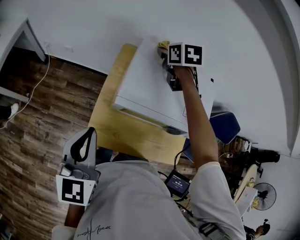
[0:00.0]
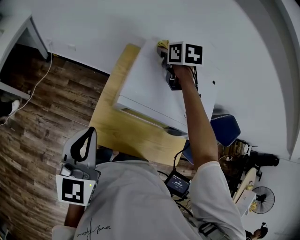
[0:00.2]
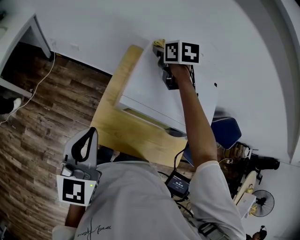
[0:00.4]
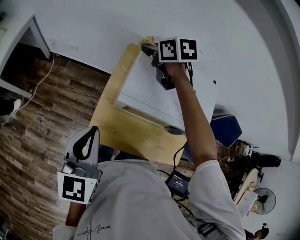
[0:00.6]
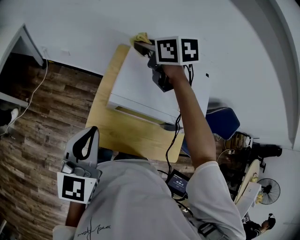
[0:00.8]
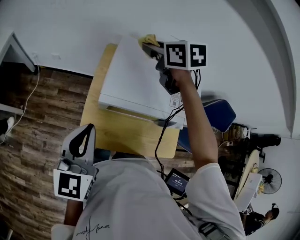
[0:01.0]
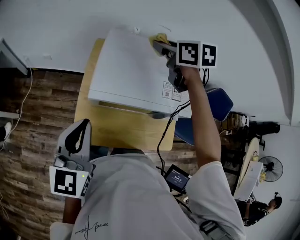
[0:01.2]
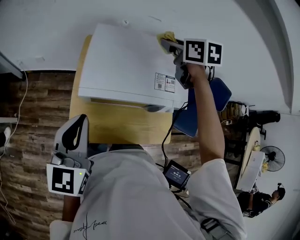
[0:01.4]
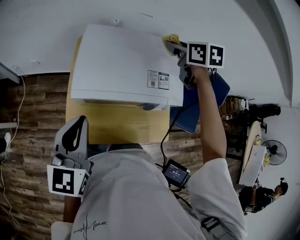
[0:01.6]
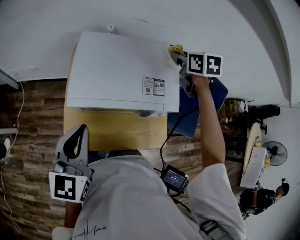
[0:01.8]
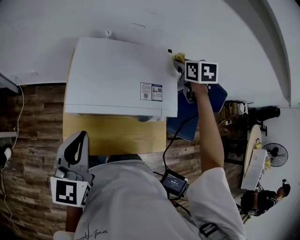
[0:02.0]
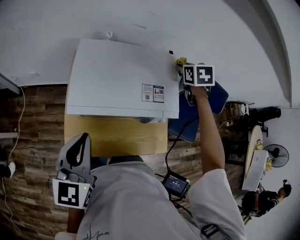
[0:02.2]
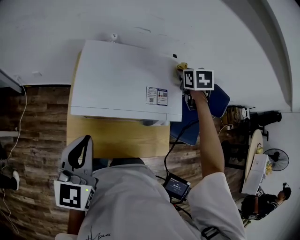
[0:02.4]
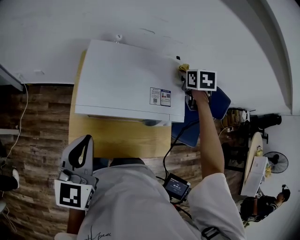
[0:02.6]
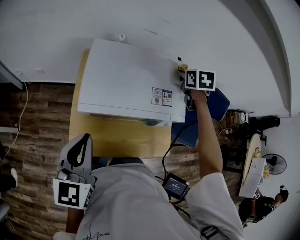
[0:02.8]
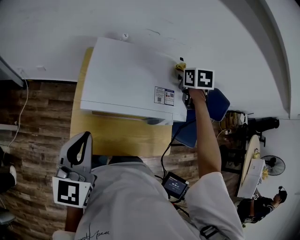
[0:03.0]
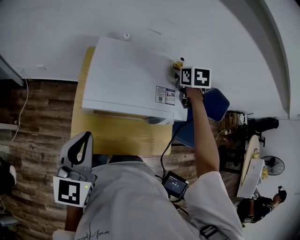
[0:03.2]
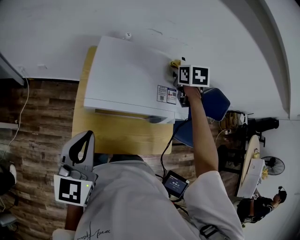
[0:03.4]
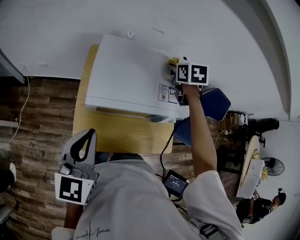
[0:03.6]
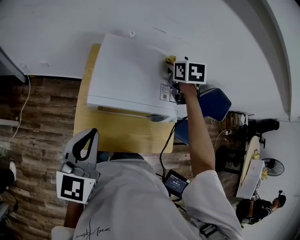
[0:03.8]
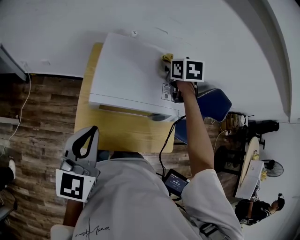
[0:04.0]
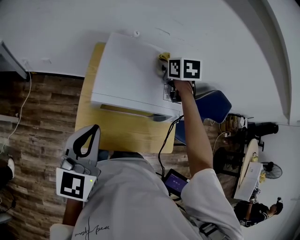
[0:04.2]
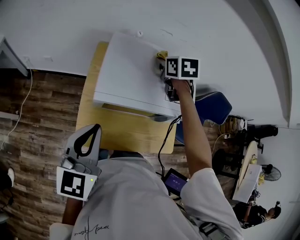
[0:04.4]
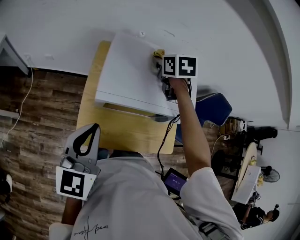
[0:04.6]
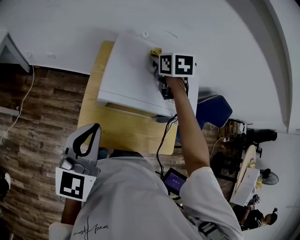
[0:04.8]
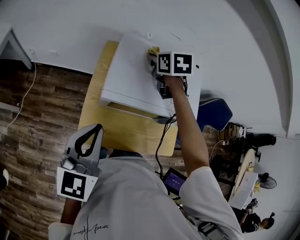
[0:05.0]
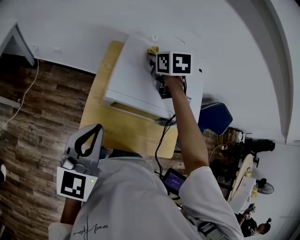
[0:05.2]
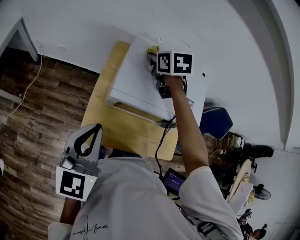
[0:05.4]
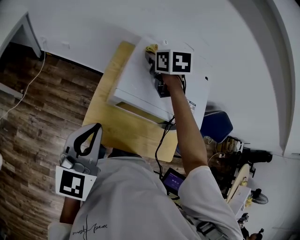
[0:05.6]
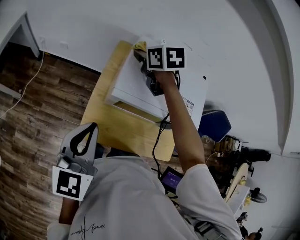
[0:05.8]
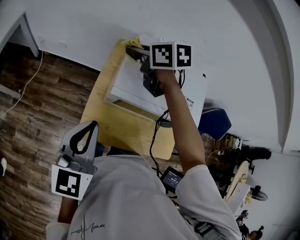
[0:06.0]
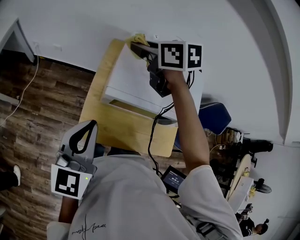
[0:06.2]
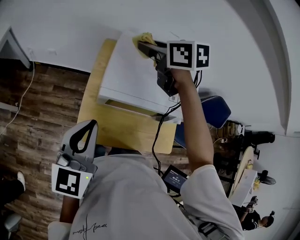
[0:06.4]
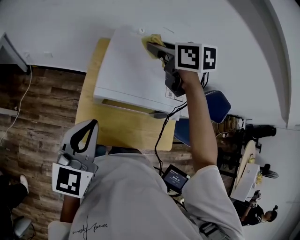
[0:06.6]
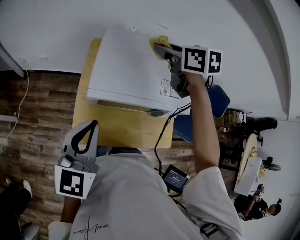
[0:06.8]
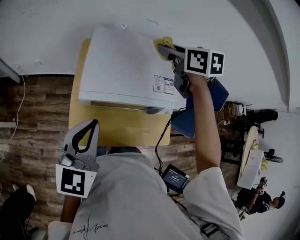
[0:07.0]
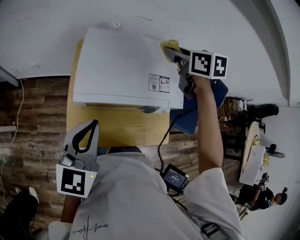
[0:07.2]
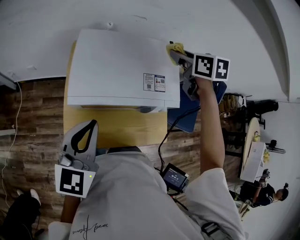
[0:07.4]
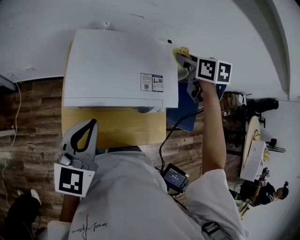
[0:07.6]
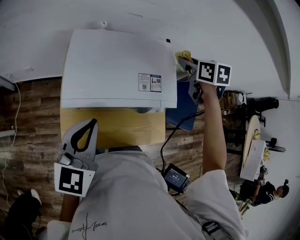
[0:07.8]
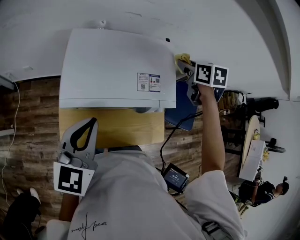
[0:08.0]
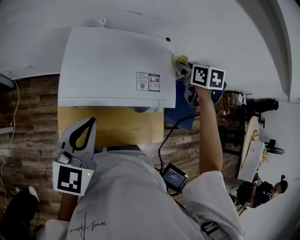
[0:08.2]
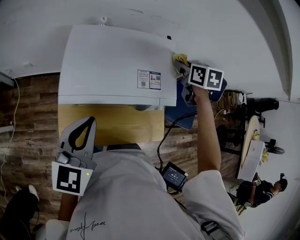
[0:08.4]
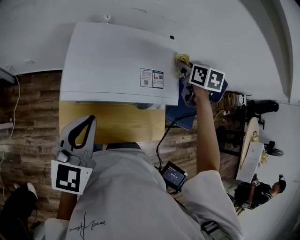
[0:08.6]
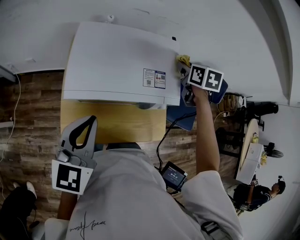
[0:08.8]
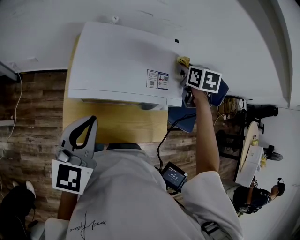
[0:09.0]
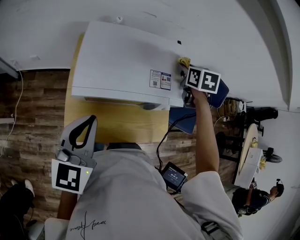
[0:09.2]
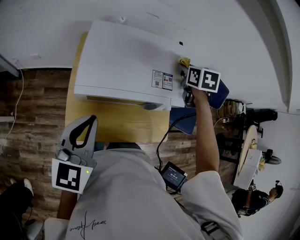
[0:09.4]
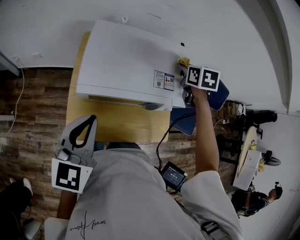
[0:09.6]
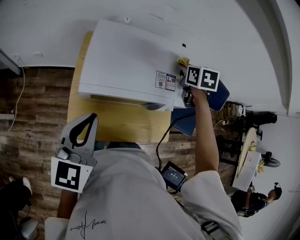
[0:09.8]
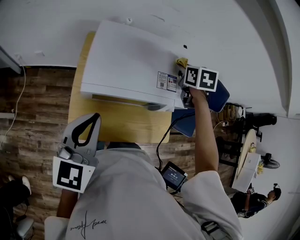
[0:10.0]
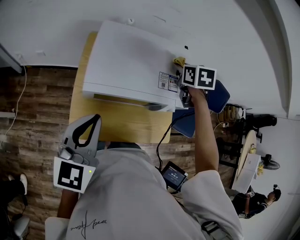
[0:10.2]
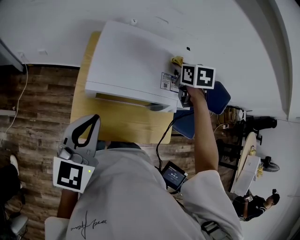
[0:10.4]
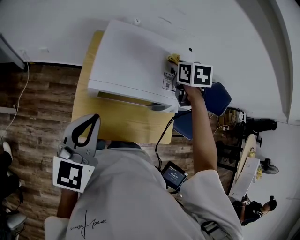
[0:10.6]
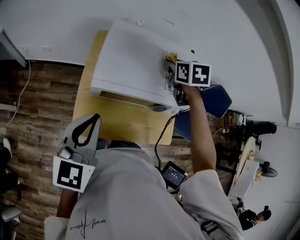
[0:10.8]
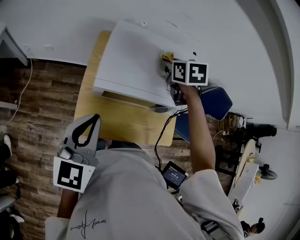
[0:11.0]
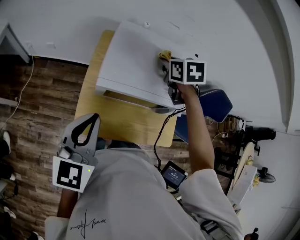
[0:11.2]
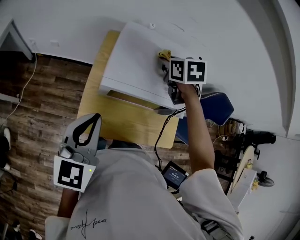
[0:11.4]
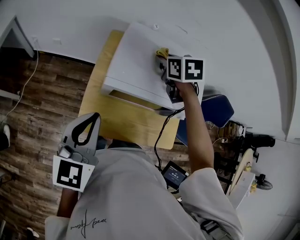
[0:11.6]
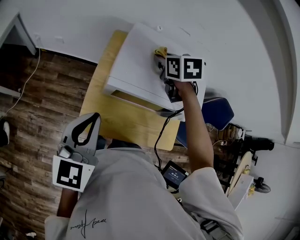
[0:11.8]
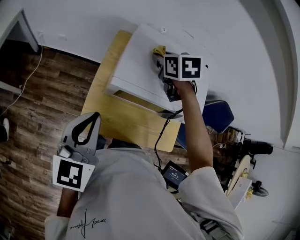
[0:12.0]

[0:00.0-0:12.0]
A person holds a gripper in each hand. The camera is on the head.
0:00.0 to 0:01.6: The left gripper travels to the right by some 10 cm, while the right gripper moves to the right and backward, some 25 cm.
0:01.6 to 0:03.0: The right gripper is displaced to the right and downward by roughly 10 cm.
0:03.0 to 0:04.4: The right gripper travels to the left by roughly 15 cm.
0:04.4 to 0:06.0: The right gripper moves approximately 25 cm, and changes its angle by roughly 30 degrees, while the left gripper ends up roughly 5 cm from where it was.
0:06.0 to 0:07.6: The right gripper ends up about 40 cm from where it was, and changes its angle by some 30 degrees; the left gripper moves some 15 cm.
0:07.6 to 0:09.0: The right gripper moves downward, about 5 cm.
0:09.0 to 0:10.4: The right gripper heads to the left, covering about 10 cm.
0:10.4 to 0:12.0: The left gripper is displaced to the left by about 5 cm, while the right gripper moves to the left, about 20 cm.

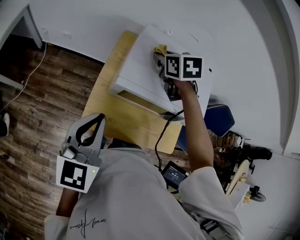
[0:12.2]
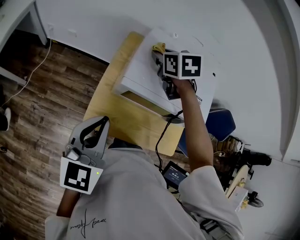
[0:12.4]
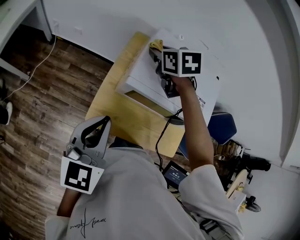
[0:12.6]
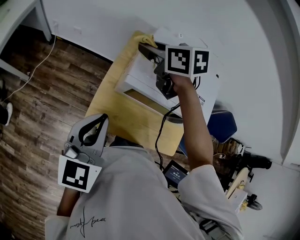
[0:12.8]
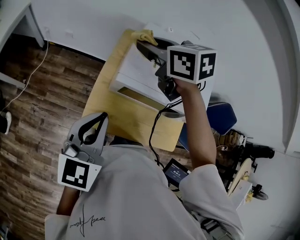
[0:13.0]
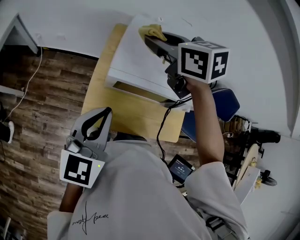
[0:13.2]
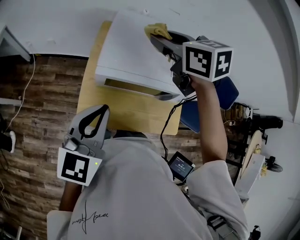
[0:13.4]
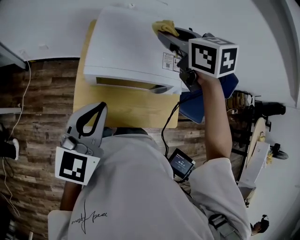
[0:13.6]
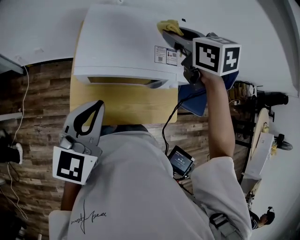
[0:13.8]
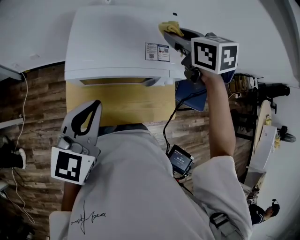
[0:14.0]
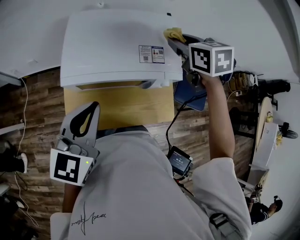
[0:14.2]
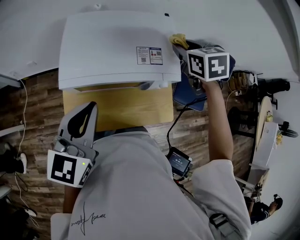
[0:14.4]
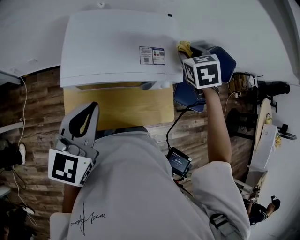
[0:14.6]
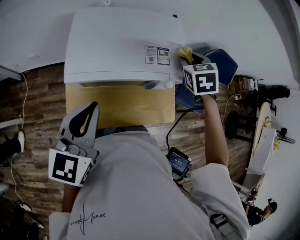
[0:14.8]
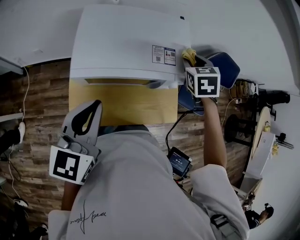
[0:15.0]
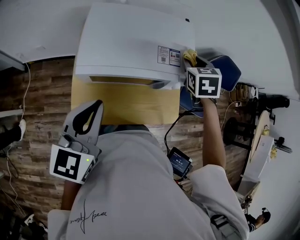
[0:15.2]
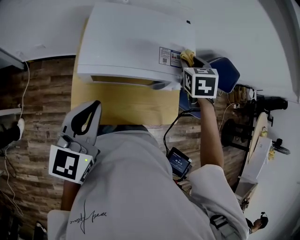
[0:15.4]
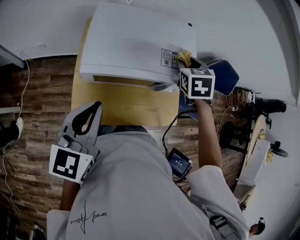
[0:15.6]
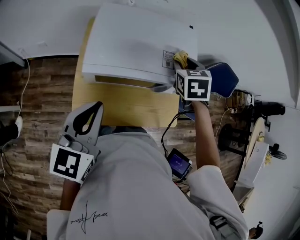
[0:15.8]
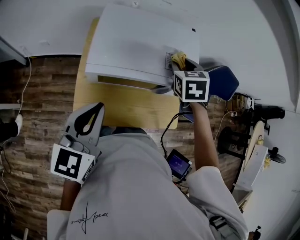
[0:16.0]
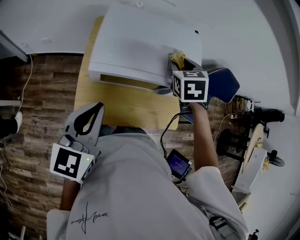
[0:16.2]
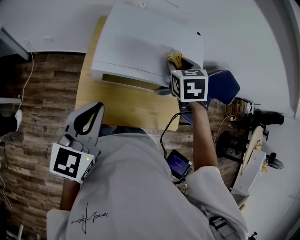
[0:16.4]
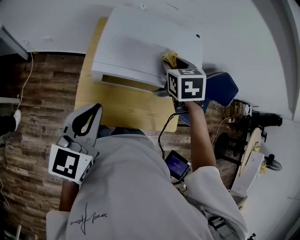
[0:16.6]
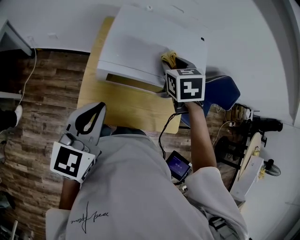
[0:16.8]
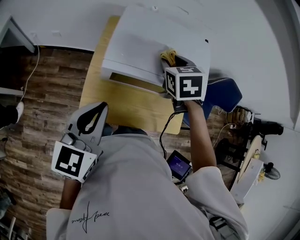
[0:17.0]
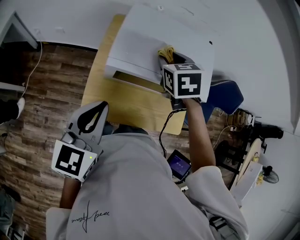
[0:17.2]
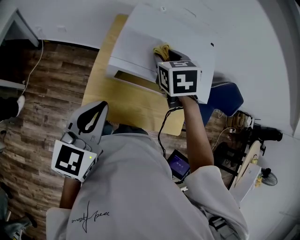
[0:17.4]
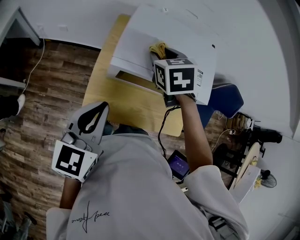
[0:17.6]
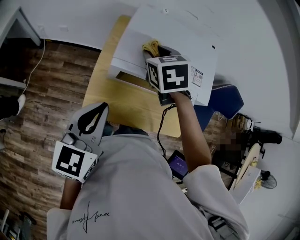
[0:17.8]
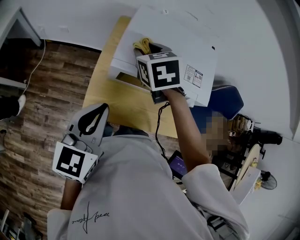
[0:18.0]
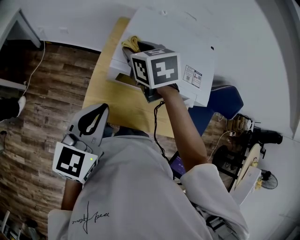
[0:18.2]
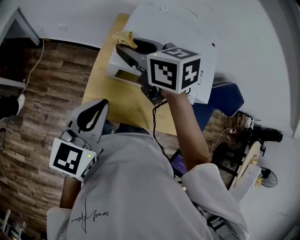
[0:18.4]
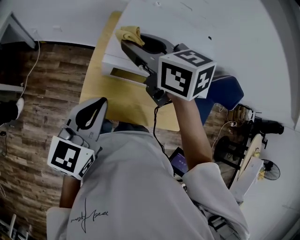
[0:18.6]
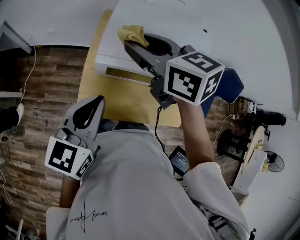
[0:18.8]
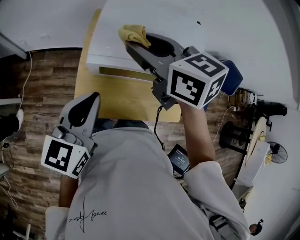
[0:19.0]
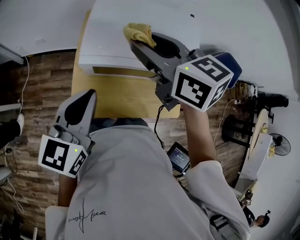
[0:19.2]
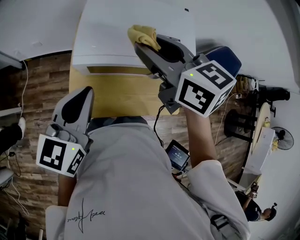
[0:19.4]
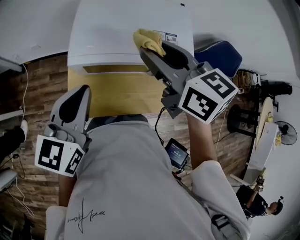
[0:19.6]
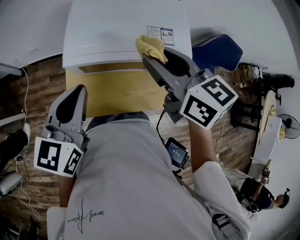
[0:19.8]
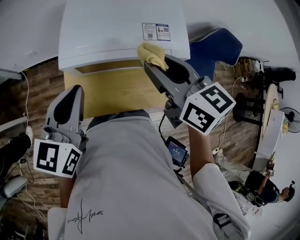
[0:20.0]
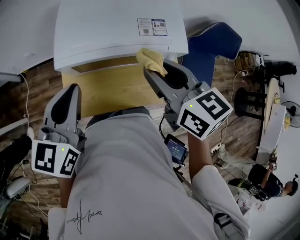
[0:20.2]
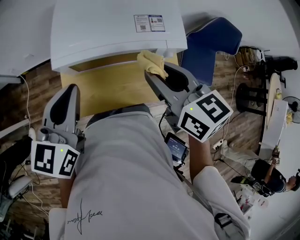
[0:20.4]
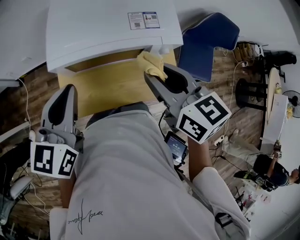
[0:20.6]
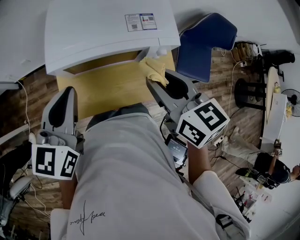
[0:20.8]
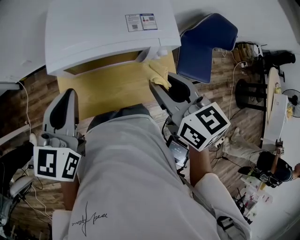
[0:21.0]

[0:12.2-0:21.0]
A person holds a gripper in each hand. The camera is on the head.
0:12.2 to 0:13.6: The right gripper heads upward, to the right and backward, covering approximately 15 cm. Meanwhile the left gripper shifts about 10 cm to the right.
0:13.6 to 0:15.2: The right gripper shifts by about 20 cm, and turns by about 40 degrees.
0:15.2 to 0:16.6: The right gripper travels to the left by some 15 cm.
0:16.6 to 0:18.0: The right gripper is displaced to the left by about 20 cm.
0:18.0 to 0:19.6: The left gripper travels to the right by roughly 5 cm. The right gripper is displaced to the right, upward and backward by roughly 20 cm, and rotates some 30 degrees.
0:19.6 to 0:21.0: The right gripper goes roughly 15 cm backward, to the right and downward.

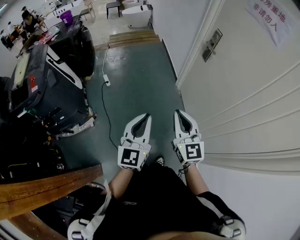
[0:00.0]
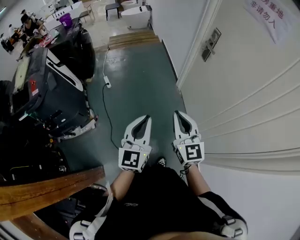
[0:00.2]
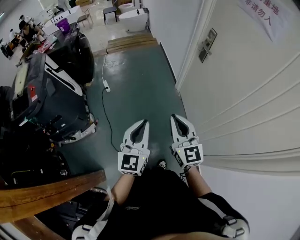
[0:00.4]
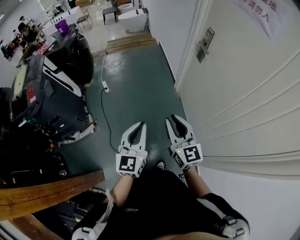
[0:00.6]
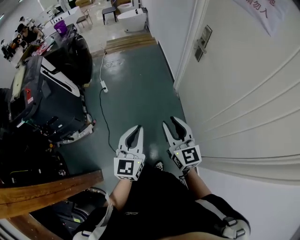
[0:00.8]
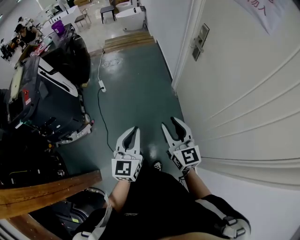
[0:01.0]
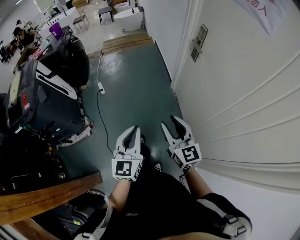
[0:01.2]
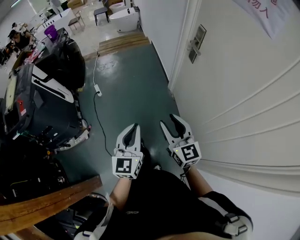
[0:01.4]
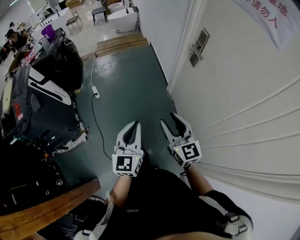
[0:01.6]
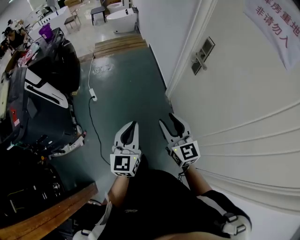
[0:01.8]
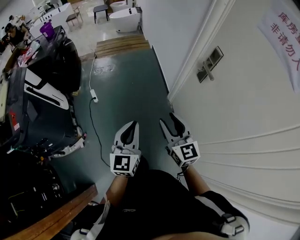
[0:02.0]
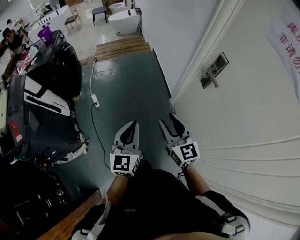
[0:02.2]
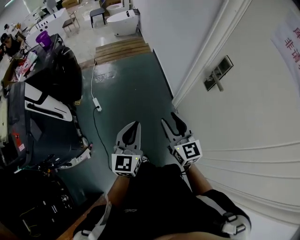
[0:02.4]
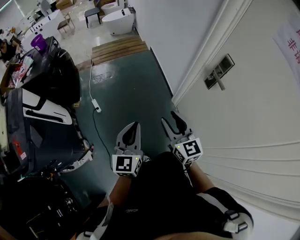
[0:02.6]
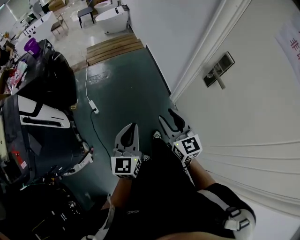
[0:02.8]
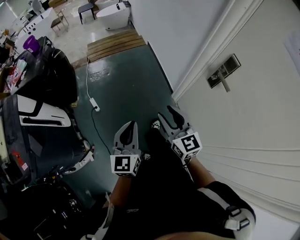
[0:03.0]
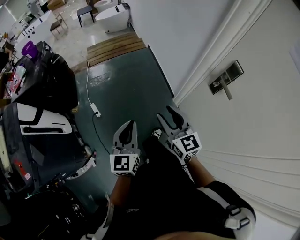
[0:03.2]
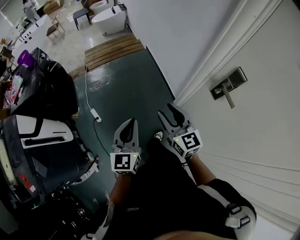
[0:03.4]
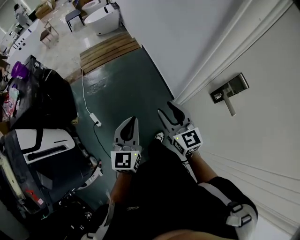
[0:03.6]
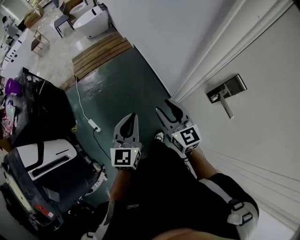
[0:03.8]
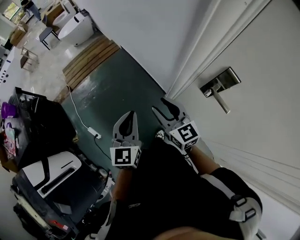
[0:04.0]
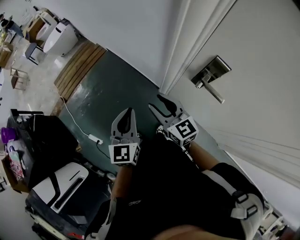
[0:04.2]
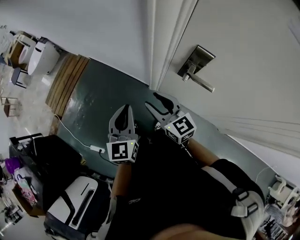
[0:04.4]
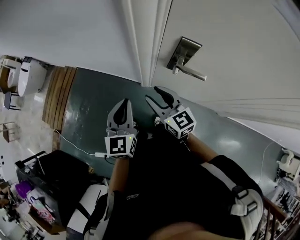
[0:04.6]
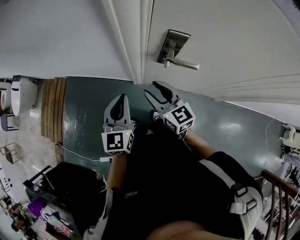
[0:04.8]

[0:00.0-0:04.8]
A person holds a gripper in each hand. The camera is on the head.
0:00.0 to 0:01.6: Both grippers move forward and to the right, approximately 15 cm. The right gripper opens up.
0:01.6 to 0:03.2: Both grippers travel together forward, about 35 cm.
0:03.2 to 0:04.8: The left gripper changes place by about 40 cm, and swivels approximately 60 degrees, while the right gripper shifts by approximately 30 cm, and rotates approximately 50 degrees.
